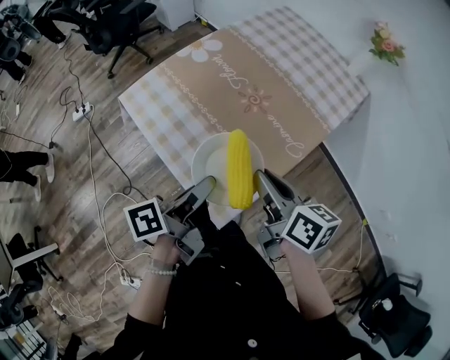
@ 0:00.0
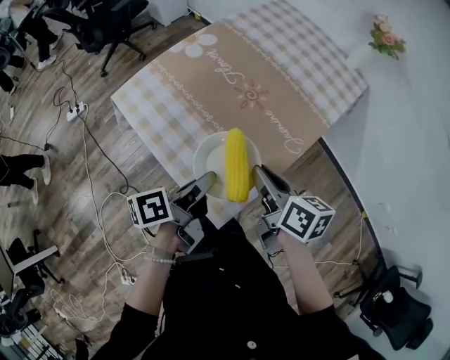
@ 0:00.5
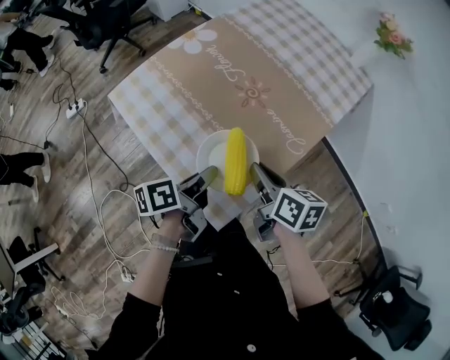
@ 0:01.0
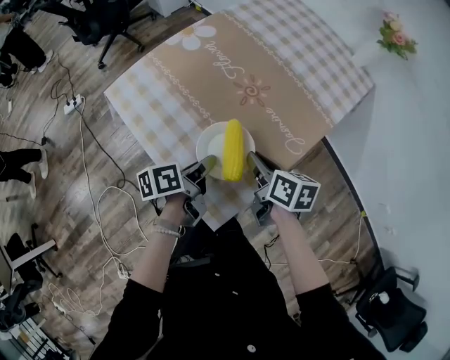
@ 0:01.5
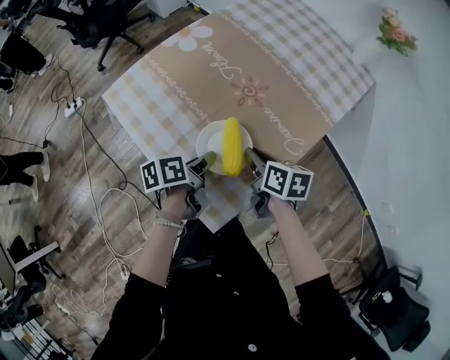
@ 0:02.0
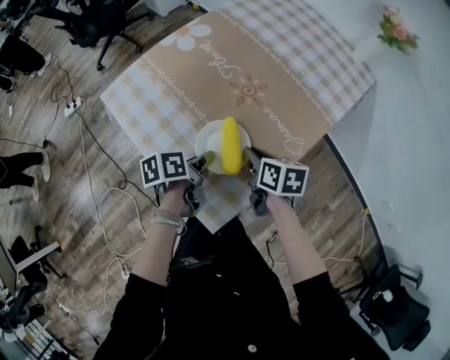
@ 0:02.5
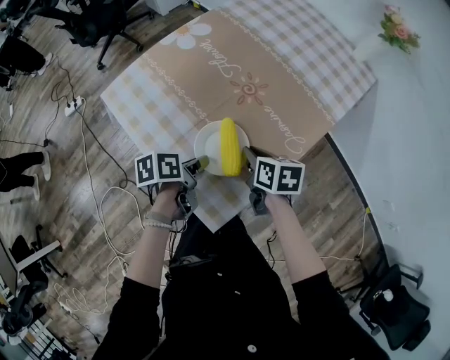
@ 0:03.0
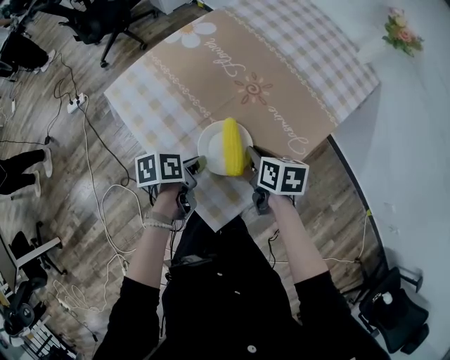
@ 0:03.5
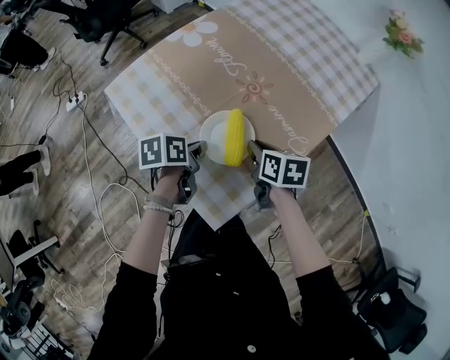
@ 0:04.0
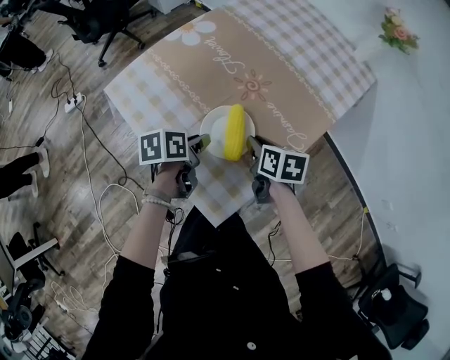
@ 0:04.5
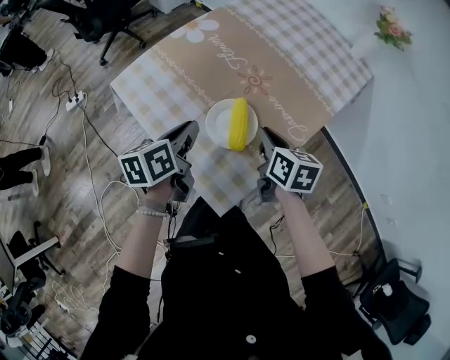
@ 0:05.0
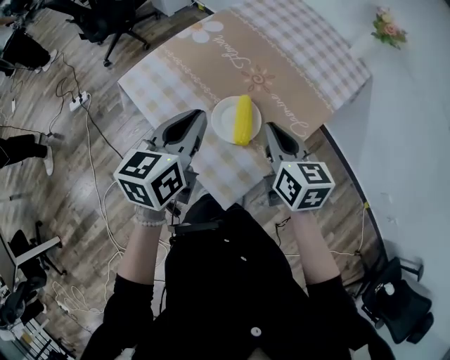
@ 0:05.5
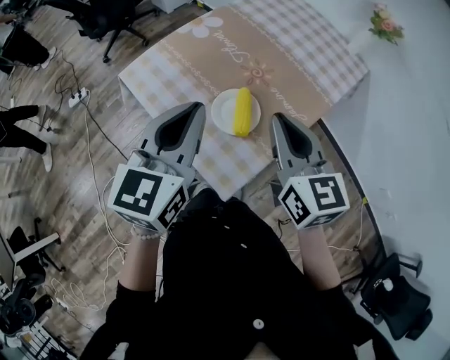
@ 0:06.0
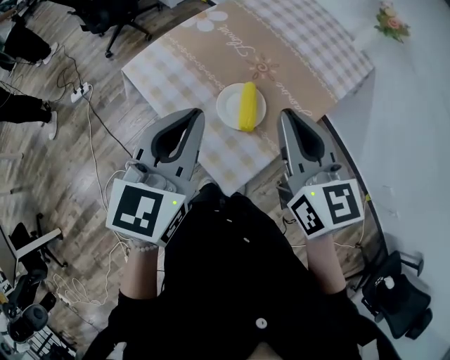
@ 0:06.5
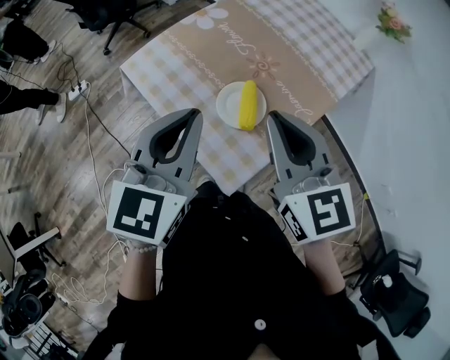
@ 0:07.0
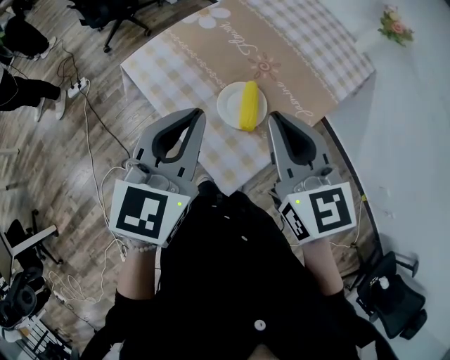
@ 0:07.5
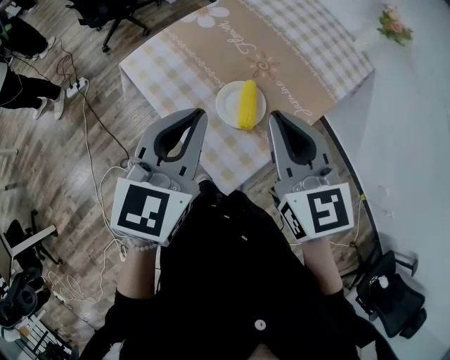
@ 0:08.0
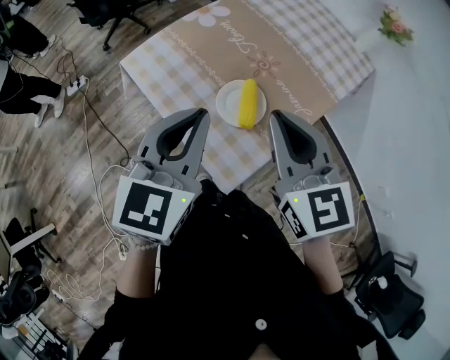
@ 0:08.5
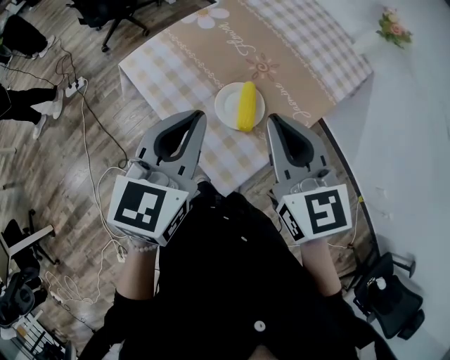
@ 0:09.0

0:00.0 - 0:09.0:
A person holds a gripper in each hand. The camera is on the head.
0:00.0 - 0:02.0: Both grippers move downward and forward, approximately 20 cm. The left gripper turns by roughly 30 degrees.
0:04.5 - 0:07.0: Both grippers travel together upward, about 30 cm. The left gripper points its fingers roughly 30 degrees further upward, and closes up. The right gripper tilts its fingers about 30 degrees upward.
0:07.0 - 0:09.0: There are only small adjustments of the grippers.

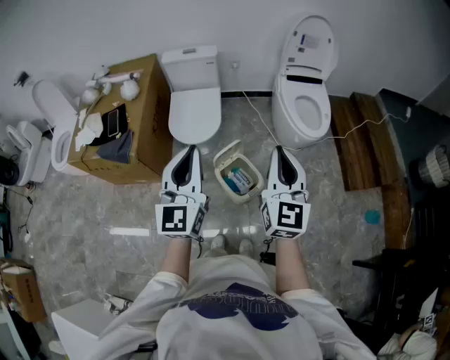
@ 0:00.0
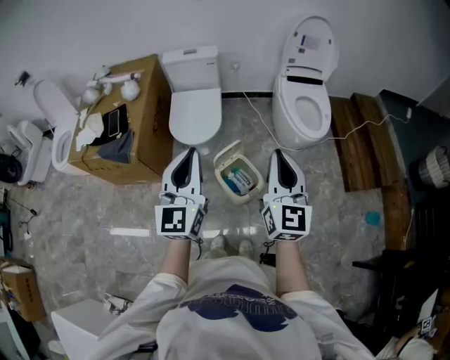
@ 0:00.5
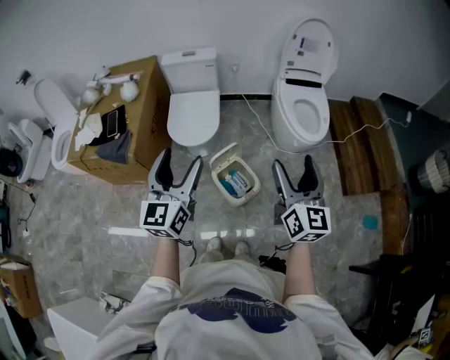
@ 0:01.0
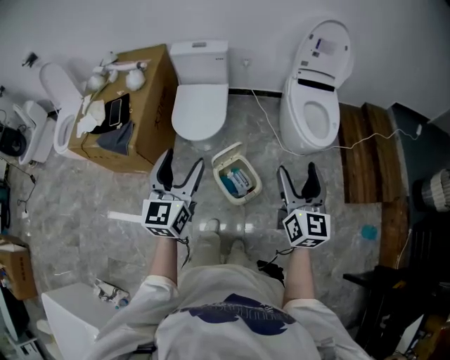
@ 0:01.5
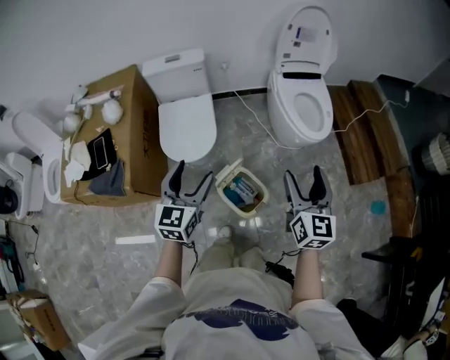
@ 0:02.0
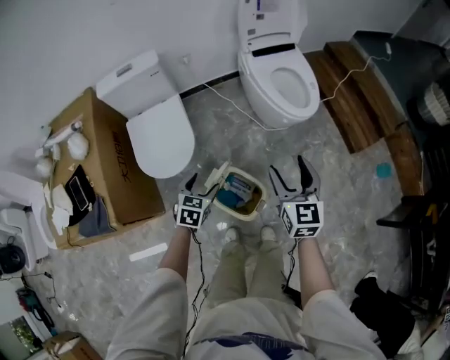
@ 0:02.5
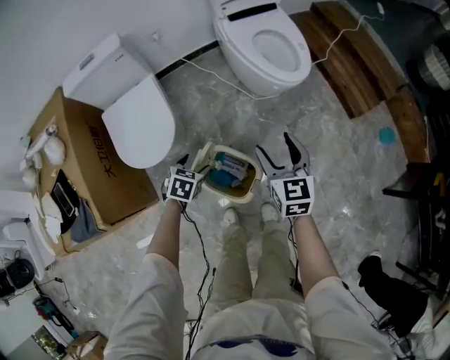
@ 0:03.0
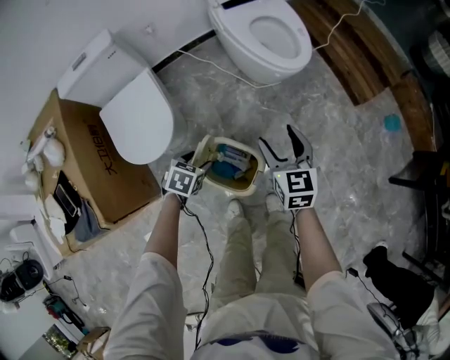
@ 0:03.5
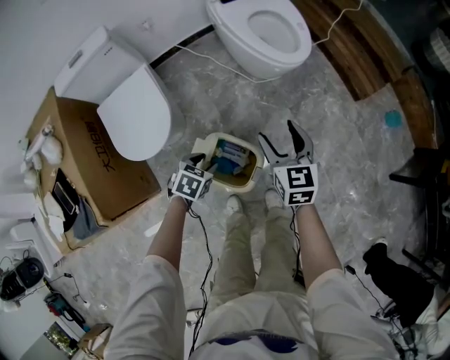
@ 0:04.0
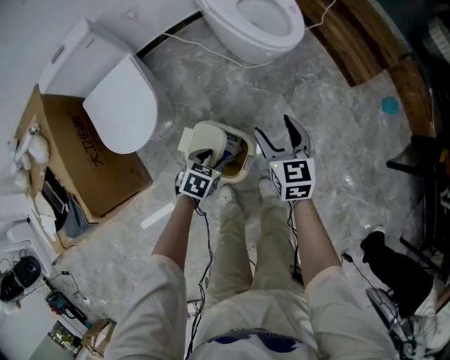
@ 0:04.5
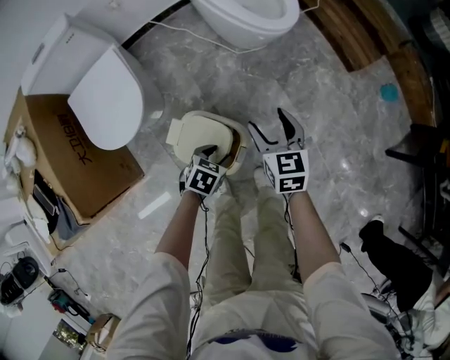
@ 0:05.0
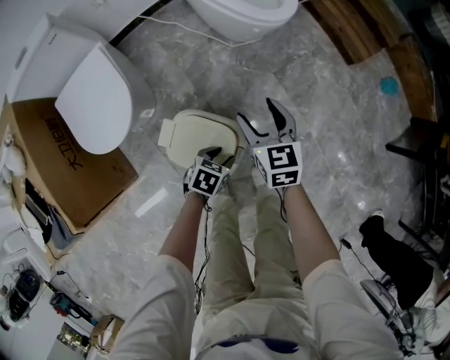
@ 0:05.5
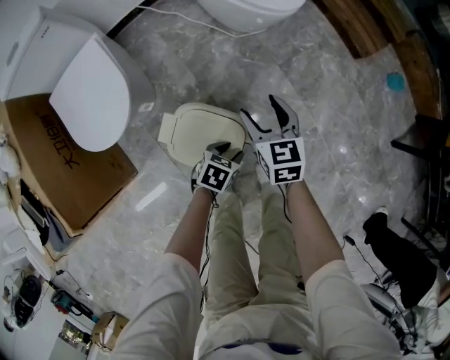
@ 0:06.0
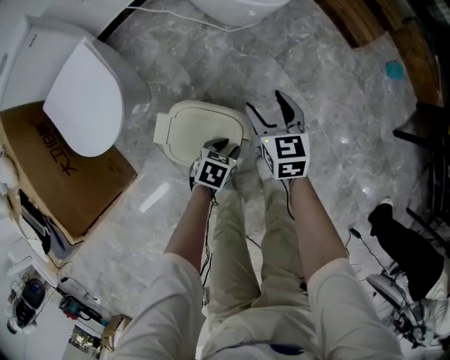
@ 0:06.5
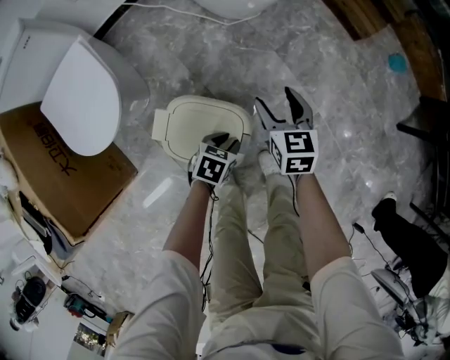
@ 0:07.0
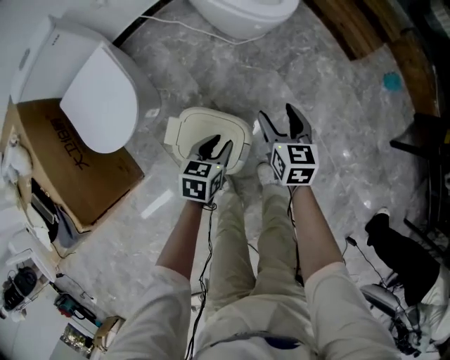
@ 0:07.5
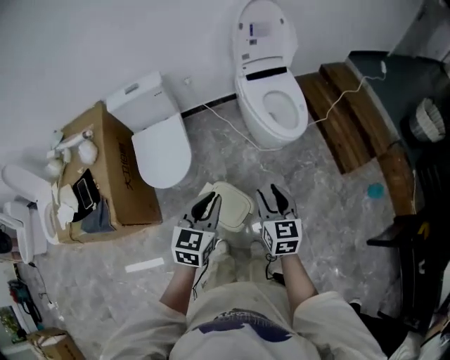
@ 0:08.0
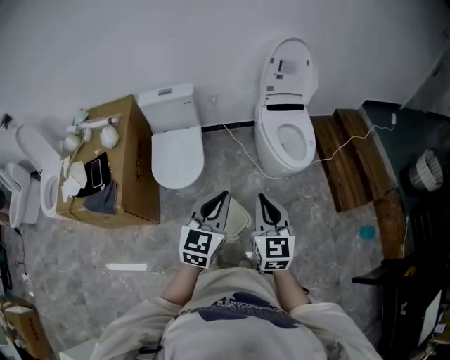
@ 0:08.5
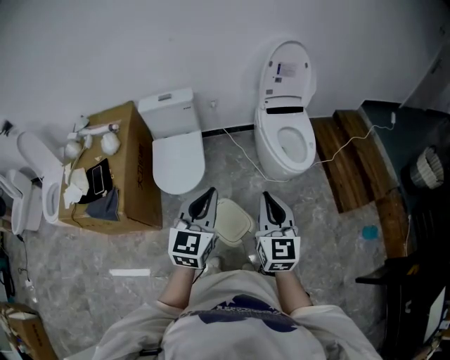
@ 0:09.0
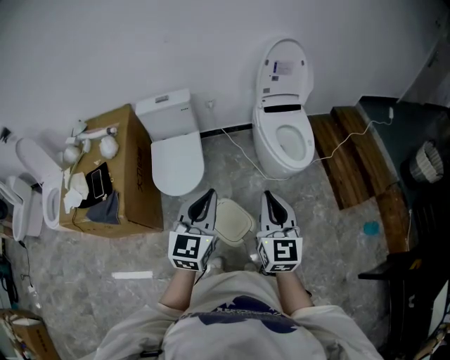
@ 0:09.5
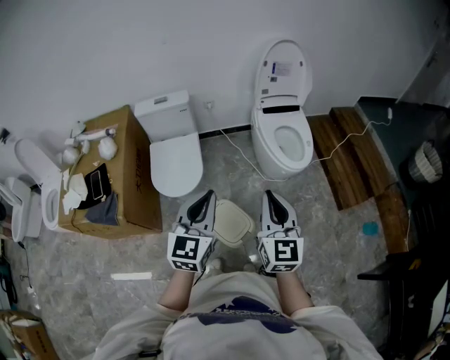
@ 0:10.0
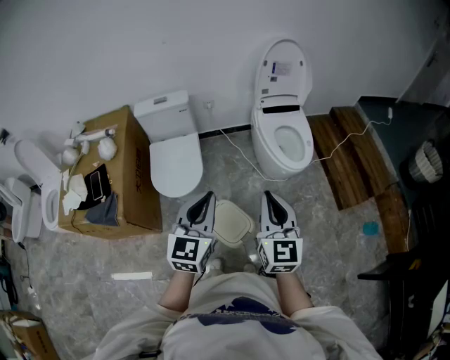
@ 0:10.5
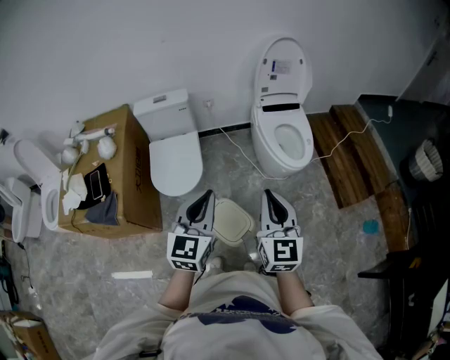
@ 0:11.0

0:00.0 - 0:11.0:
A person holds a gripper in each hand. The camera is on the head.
0:00.0 - 0:02.0: The right gripper shifts some 15 cm forward, downward and to the right, and opens. The left gripper travels forward and downward by approximately 20 cm, swivels roughly 30 degrees, and opens up.
0:02.0 - 0:03.5: Both grippers move downward, about 30 cm. The left gripper tips its fingers downward by roughly 50 degrees.
0:03.5 - 0:05.5: The left gripper shifts approximately 20 cm to the right and downward; the right gripper is displaced downward by roughly 15 cm.
0:05.5 - 0:07.5: The left gripper heads upward, covering approximately 10 cm, and turns by roughly 20 degrees. The right gripper moves some 10 cm downward and comes back.
0:07.5 - 0:09.0: The two grippers go approximately 50 cm upward. The right gripper swivels approximately 40 degrees, and closes its fingers, while the left gripper tilts its fingers roughly 40 degrees upward, and closes its fingers.
0:09.0 - 0:11.0: The grippers make only small movements.

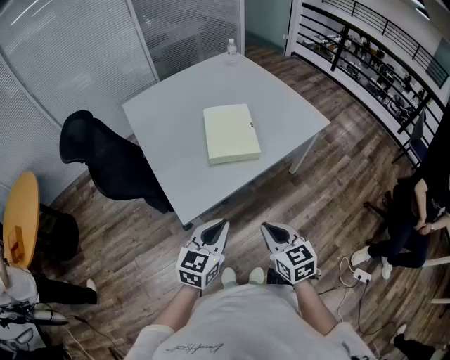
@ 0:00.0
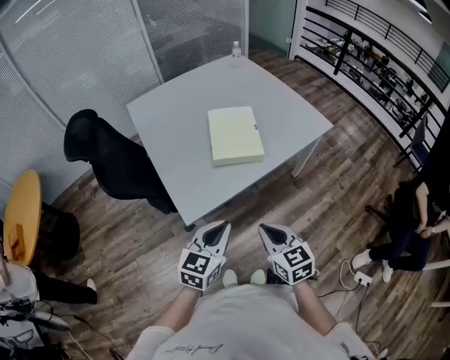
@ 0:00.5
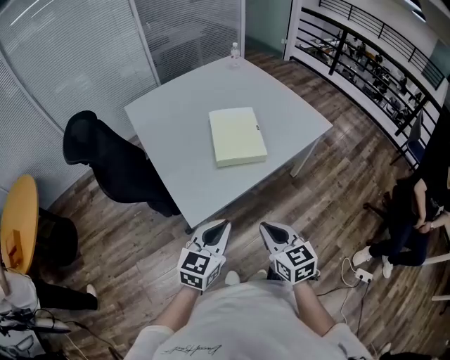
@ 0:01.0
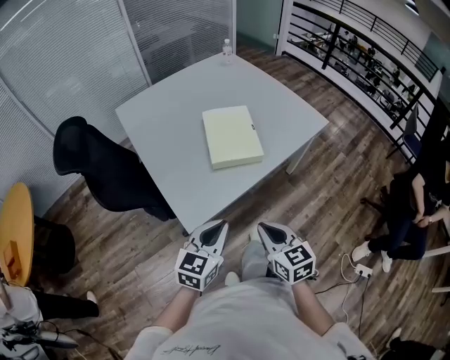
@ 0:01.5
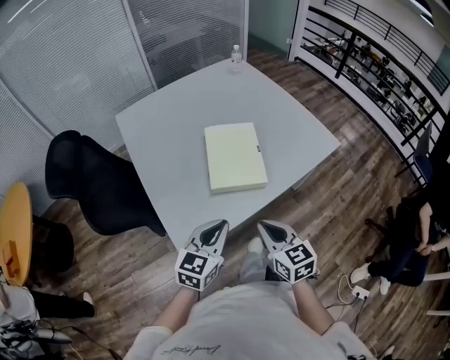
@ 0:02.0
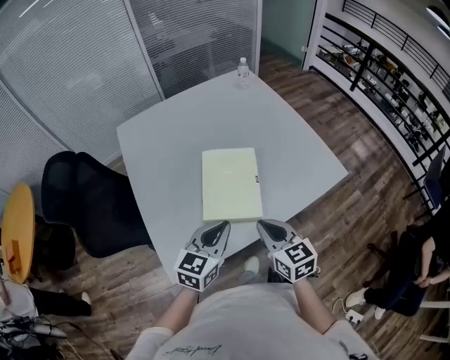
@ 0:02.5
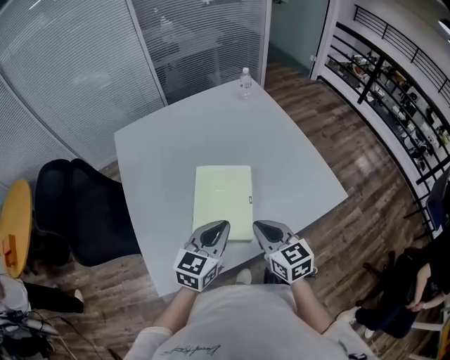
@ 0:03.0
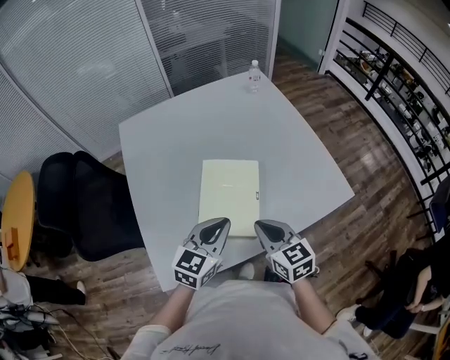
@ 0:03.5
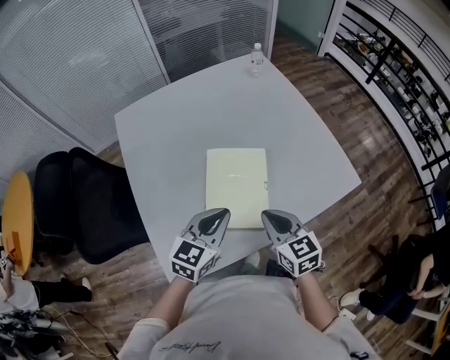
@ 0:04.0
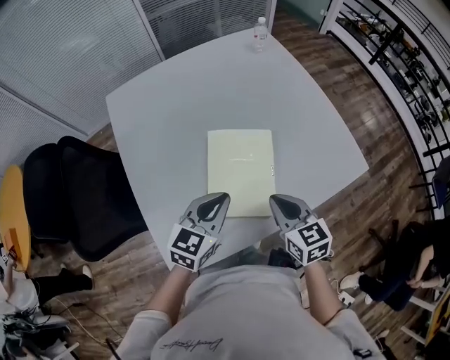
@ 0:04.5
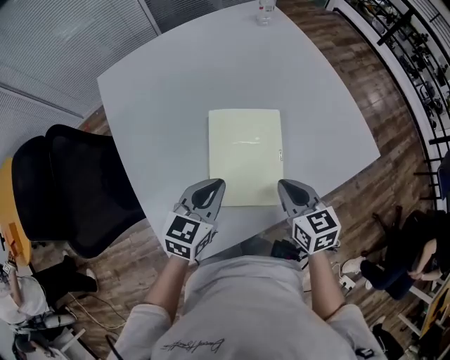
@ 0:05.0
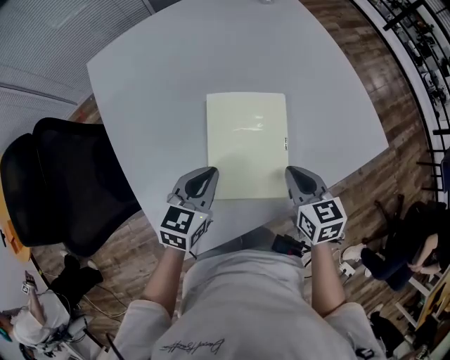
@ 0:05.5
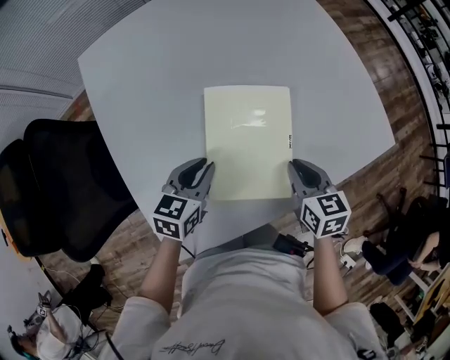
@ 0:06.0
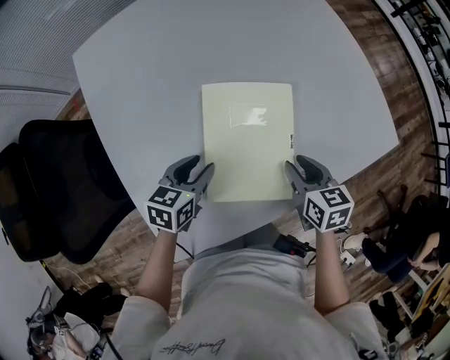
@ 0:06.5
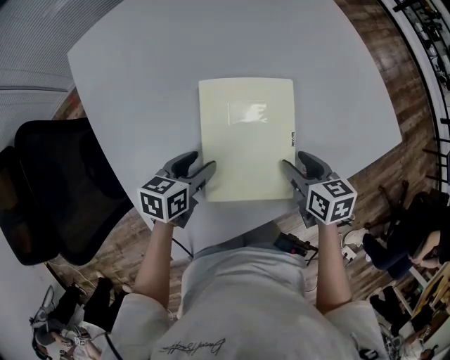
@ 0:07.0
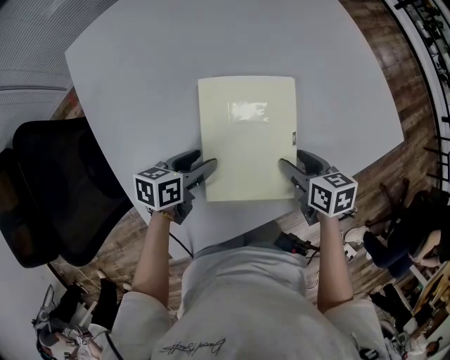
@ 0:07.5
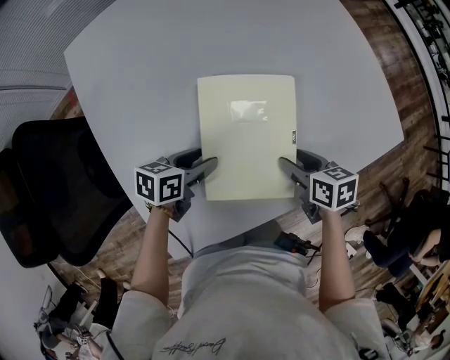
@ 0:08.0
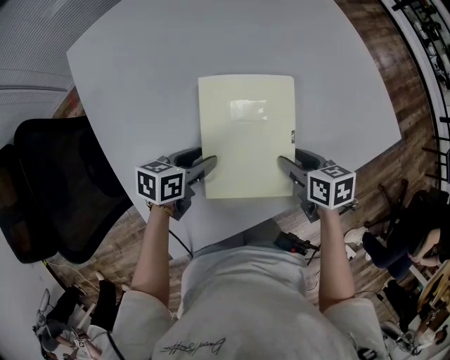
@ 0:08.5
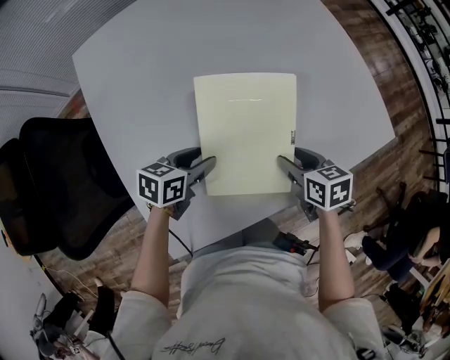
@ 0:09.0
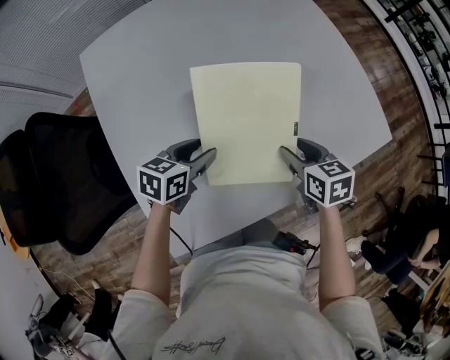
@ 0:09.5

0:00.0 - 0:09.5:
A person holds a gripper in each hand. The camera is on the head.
0:00.0 - 0:02.0: Both grippers travel together forward, roughly 15 cm.
0:02.0 - 0:04.0: Both grippers travel together forward, about 20 cm.
0:04.0 - 0:05.5: The left gripper goes approximately 10 cm downward and to the left; the right gripper goes roughly 10 cm downward.
0:05.5 - 0:07.5: The two grippers go approximately 10 cm downward. The right gripper rotates about 20 degrees, and opens its fingers. The left gripper changes its angle by approximately 40 degrees, and opens up.
0:07.5 - 0:09.5: The two grippers go roughly 5 cm upward.
